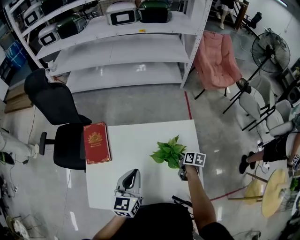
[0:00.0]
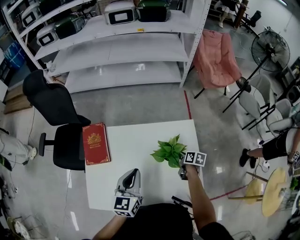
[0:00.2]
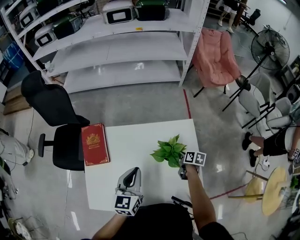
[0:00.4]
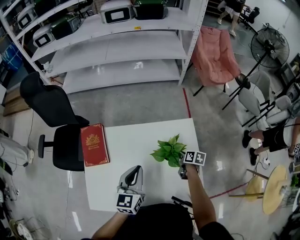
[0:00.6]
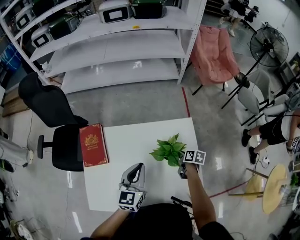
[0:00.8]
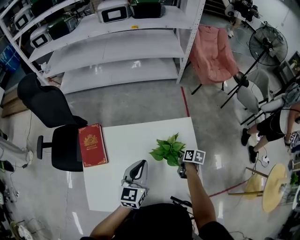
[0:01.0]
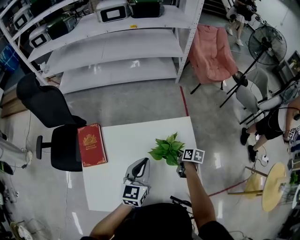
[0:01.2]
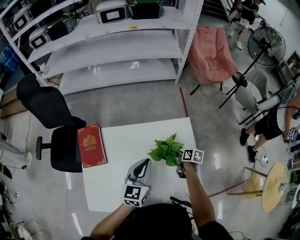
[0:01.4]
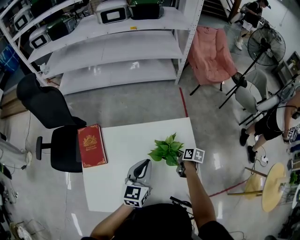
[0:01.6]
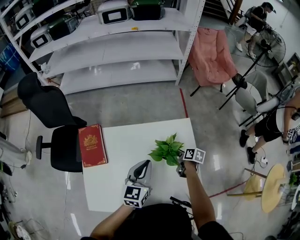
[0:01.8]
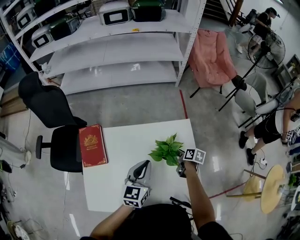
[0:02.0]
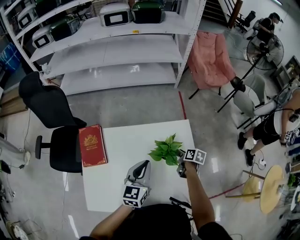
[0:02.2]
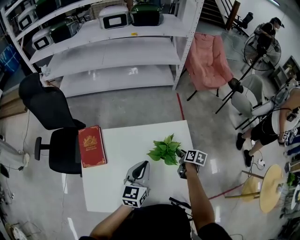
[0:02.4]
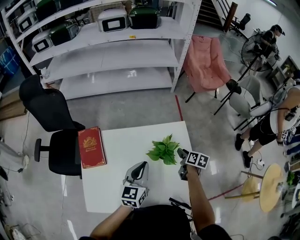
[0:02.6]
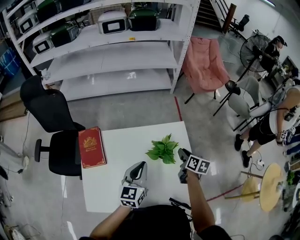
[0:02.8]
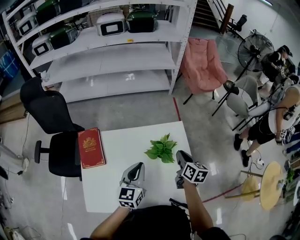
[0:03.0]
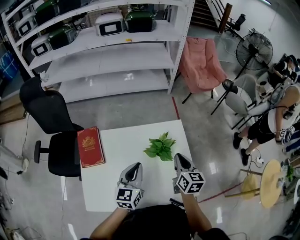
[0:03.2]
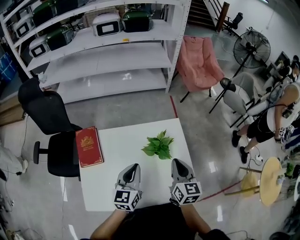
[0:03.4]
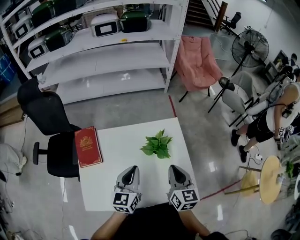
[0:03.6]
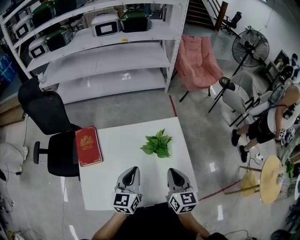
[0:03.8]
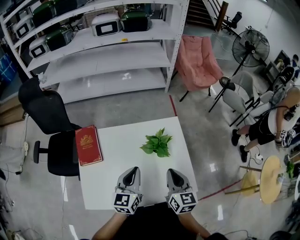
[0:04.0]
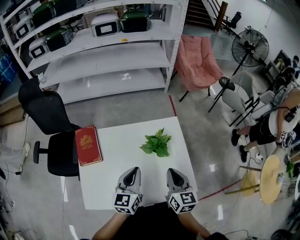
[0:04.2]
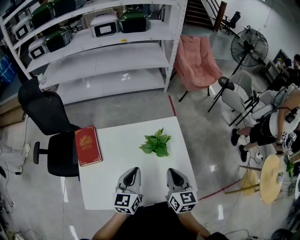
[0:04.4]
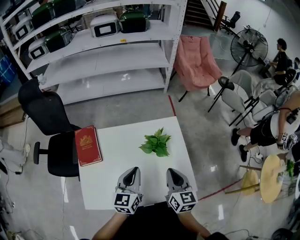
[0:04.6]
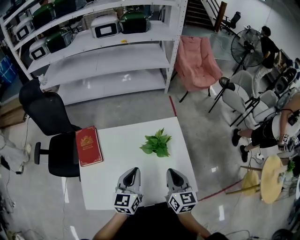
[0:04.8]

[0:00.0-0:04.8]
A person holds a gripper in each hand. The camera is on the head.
0:00.0 to 0:01.6: The left gripper travels to the right by approximately 10 cm.
0:01.6 to 0:03.2: The right gripper moves upward and backward, roughly 25 cm, and changes its angle by about 40 degrees. The left gripper is displaced backward by about 5 cm.
0:03.2 to 0:04.8: The right gripper moves backward, some 10 cm.

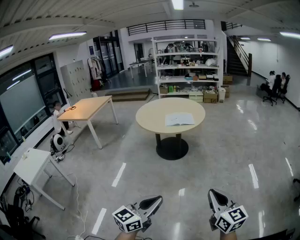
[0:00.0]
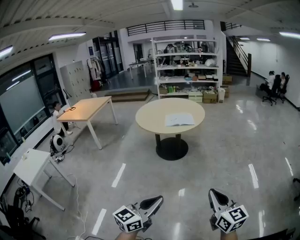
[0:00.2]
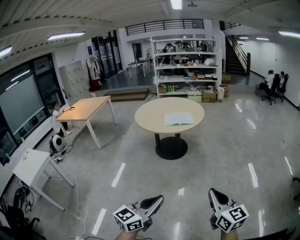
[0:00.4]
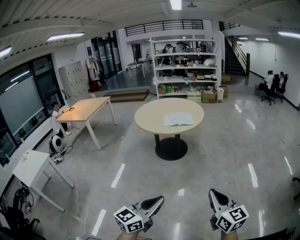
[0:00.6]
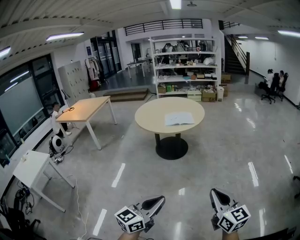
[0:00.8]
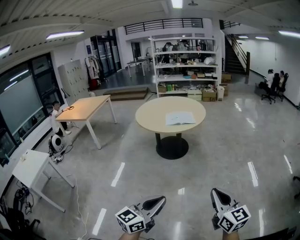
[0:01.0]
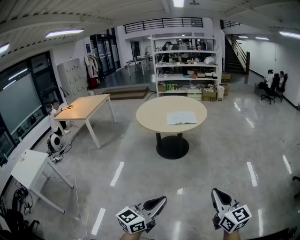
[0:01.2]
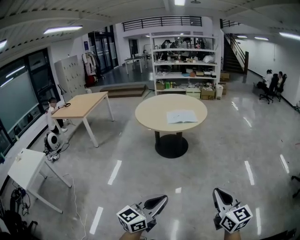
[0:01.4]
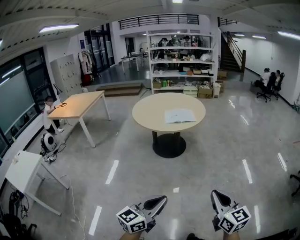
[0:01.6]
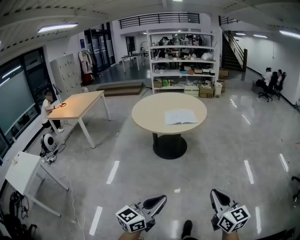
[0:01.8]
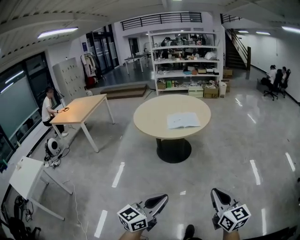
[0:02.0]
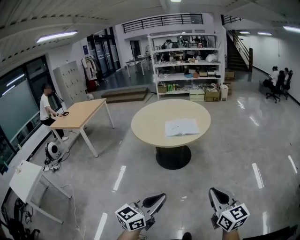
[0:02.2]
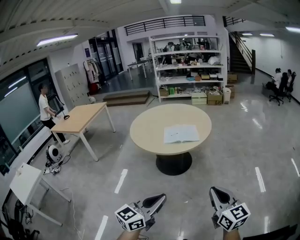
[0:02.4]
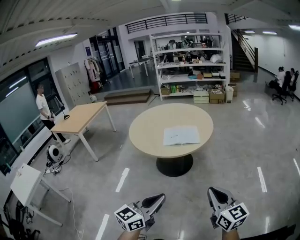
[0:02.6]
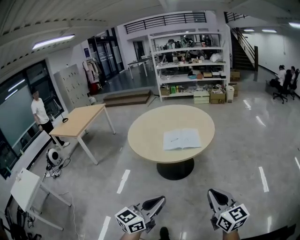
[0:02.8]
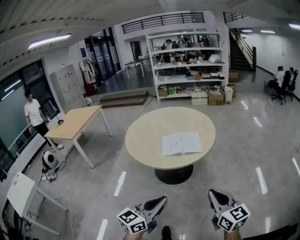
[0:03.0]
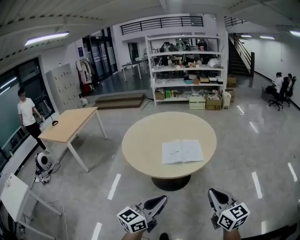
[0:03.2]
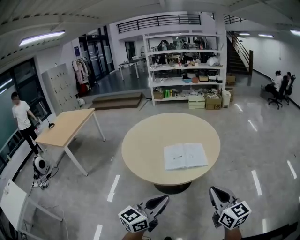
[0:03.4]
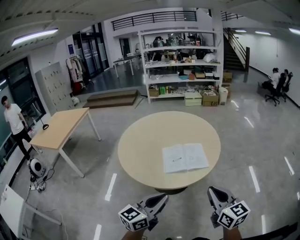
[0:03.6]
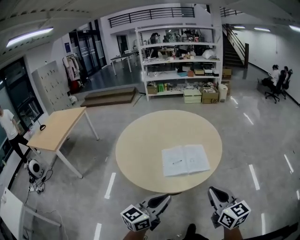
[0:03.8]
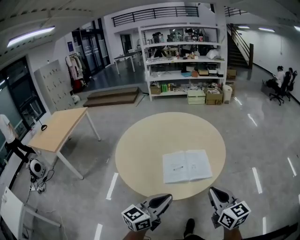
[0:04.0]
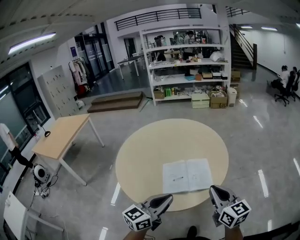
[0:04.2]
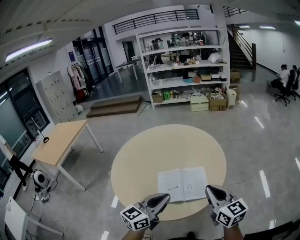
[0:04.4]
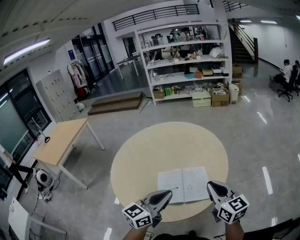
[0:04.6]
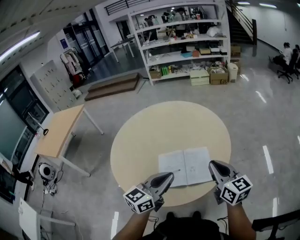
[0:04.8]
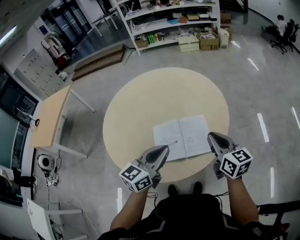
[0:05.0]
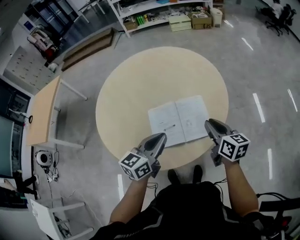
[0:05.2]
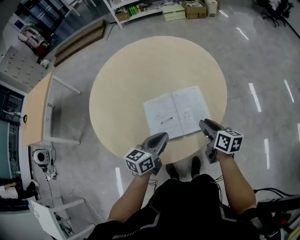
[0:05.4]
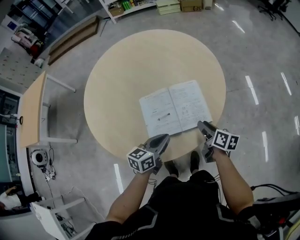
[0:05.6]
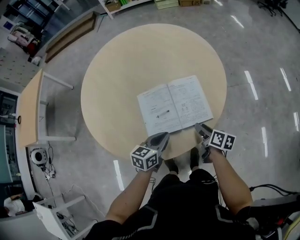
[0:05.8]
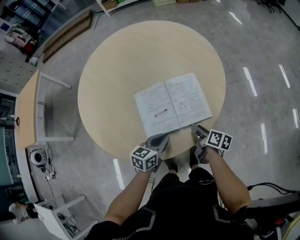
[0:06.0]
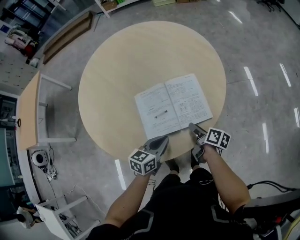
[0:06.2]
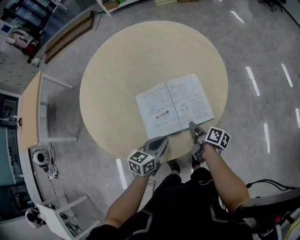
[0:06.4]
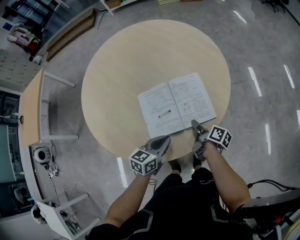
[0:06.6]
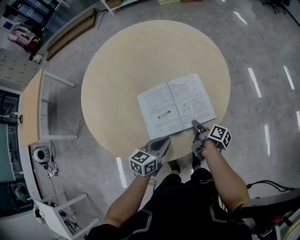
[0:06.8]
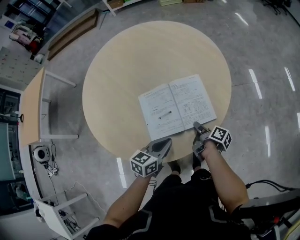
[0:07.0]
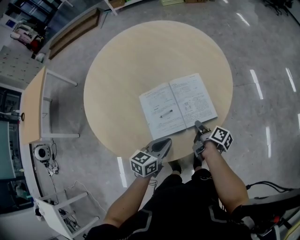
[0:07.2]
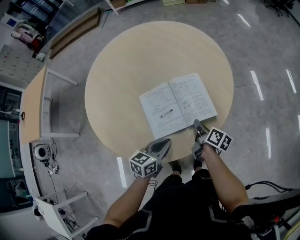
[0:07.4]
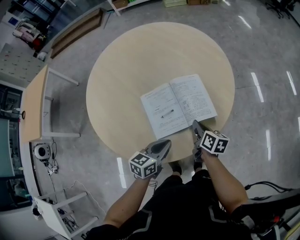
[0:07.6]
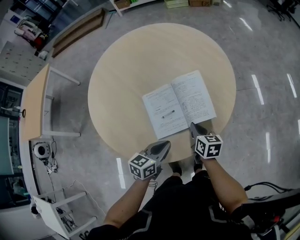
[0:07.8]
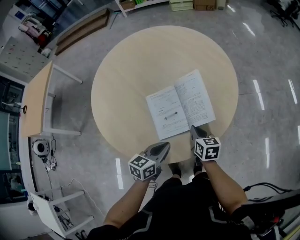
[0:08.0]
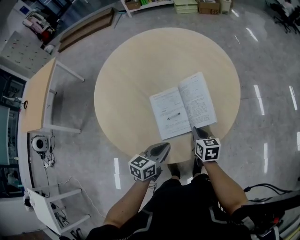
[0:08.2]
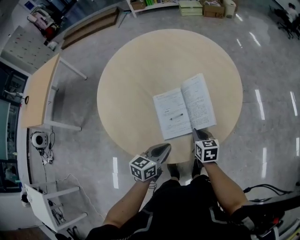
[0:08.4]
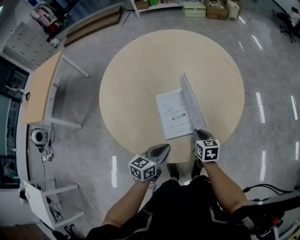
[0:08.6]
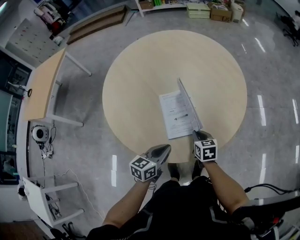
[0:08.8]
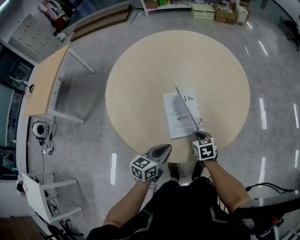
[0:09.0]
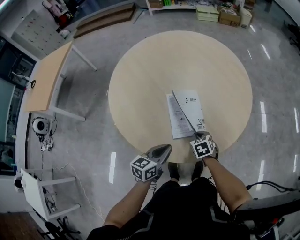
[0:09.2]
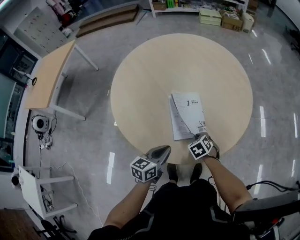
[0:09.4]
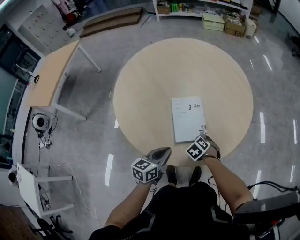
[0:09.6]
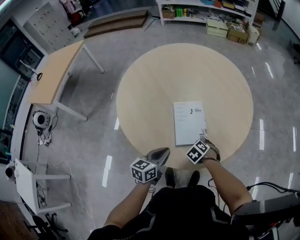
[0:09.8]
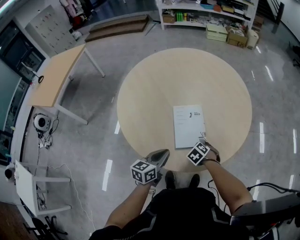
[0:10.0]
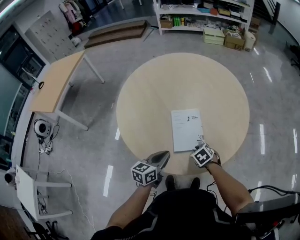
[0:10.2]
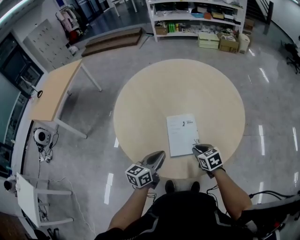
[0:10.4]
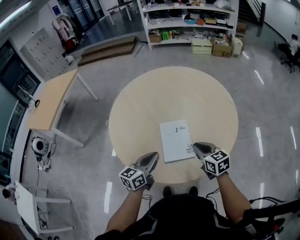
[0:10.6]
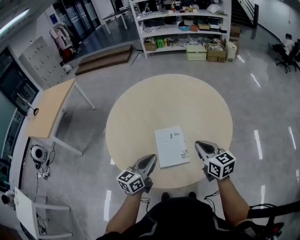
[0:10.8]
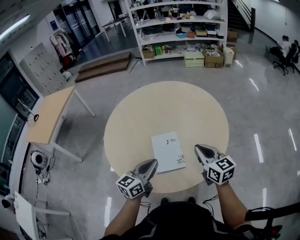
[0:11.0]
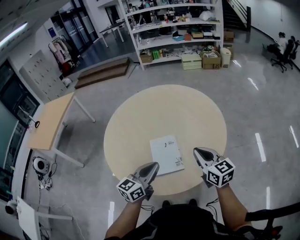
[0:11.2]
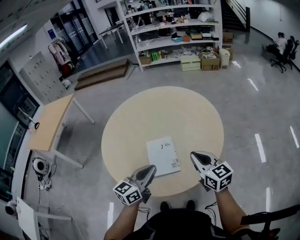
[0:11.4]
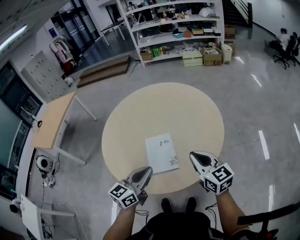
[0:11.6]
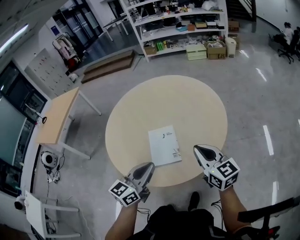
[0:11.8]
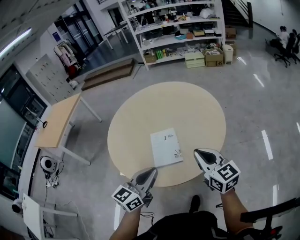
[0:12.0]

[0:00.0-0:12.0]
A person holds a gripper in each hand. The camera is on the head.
0:00.0 to 0:01.6: The left gripper moves to the left and forward, approximately 10 cm, while the right gripper is displaced to the left by roughly 10 cm.
0:01.6 to 0:03.0: The pair of grippers is taken forward, approximately 50 cm.
0:03.0 to 0:04.4: The pair of grippers is taken forward, about 50 cm.
0:04.4 to 0:06.0: Both grippers travel together downward, roughly 35 cm. The right gripper rotates around the line of its fingers by about 60 degrees, clockwise from behind, and opens up. The left gripper rotates about 30 degrees.
0:06.0 to 0:07.6: The right gripper moves approximately 5 cm, and closes.
0:07.6 to 0:09.0: The grippers both shift to the left by approximately 10 cm. The right gripper rolls counterclockwise, seen from behind, by some 40 degrees.
0:09.0 to 0:10.4: The left gripper changes place by roughly 10 cm. Meanwhile the right gripper shifts approximately 5 cm upward.
0:10.4 to 0:12.0: The left gripper goes roughly 20 cm upward, to the right and backward; the right gripper goes some 25 cm upward and to the right, and points its fingers approximately 40 degrees further upward.

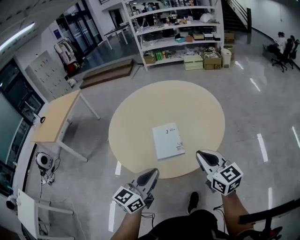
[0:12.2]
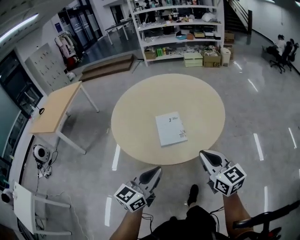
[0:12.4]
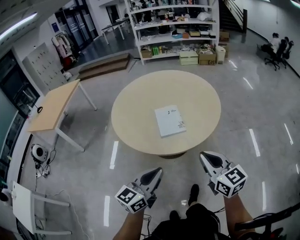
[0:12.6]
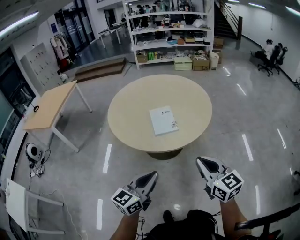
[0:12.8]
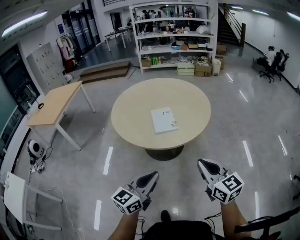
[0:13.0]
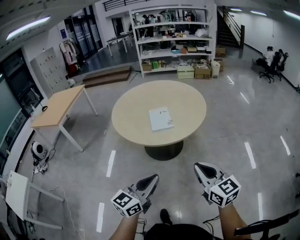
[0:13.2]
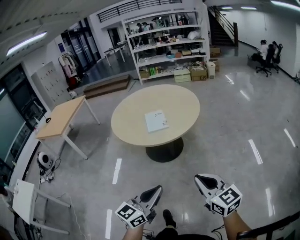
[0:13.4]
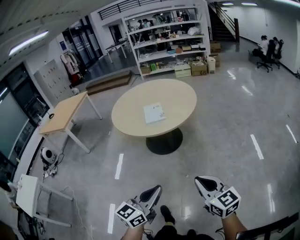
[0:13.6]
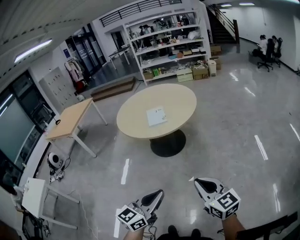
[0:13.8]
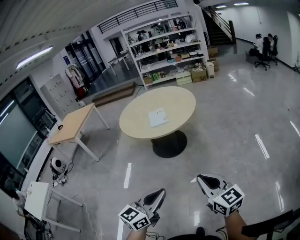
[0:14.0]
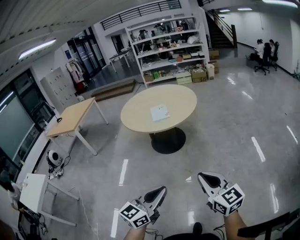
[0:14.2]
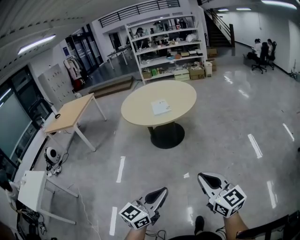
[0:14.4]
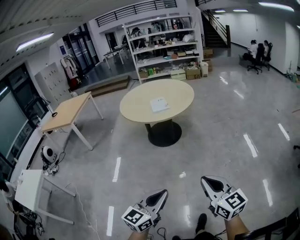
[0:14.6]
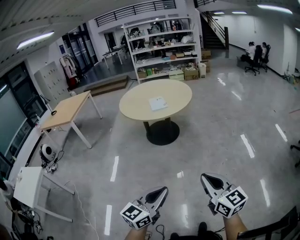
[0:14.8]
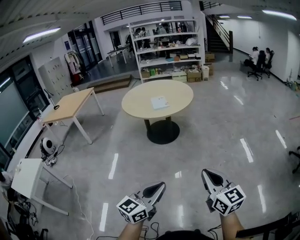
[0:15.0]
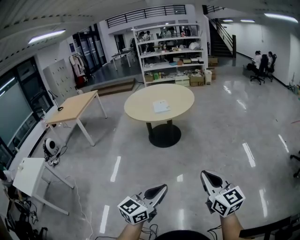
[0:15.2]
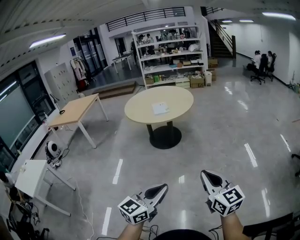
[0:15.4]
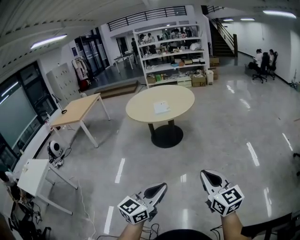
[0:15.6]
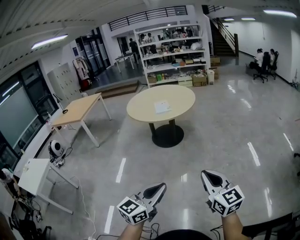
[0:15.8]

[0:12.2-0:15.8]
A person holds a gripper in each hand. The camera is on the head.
0:12.2 to 0:14.0: The two grippers travel together, backward, roughly 70 cm.
0:14.0 to 0:15.8: The grippers both shift backward by some 30 cm.

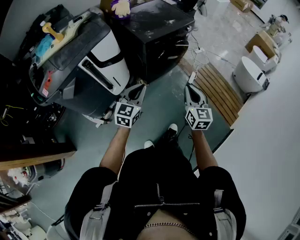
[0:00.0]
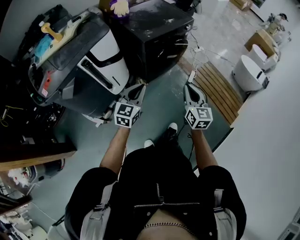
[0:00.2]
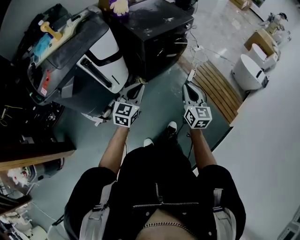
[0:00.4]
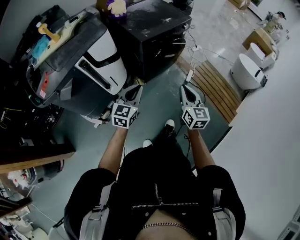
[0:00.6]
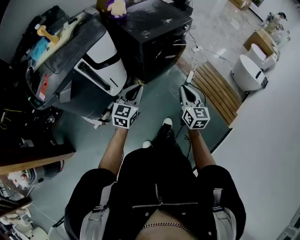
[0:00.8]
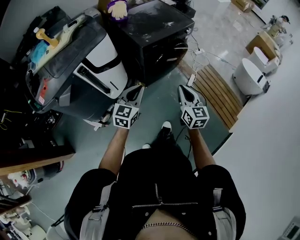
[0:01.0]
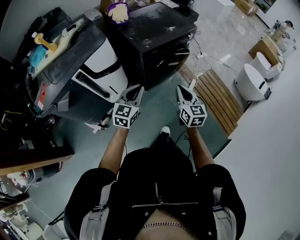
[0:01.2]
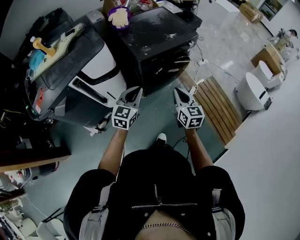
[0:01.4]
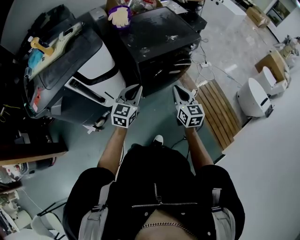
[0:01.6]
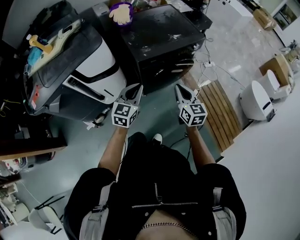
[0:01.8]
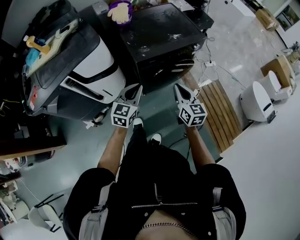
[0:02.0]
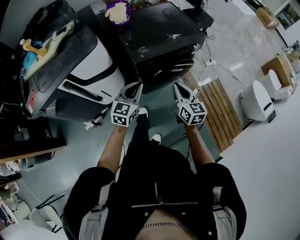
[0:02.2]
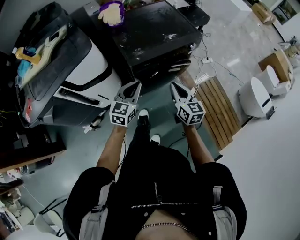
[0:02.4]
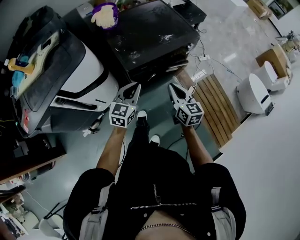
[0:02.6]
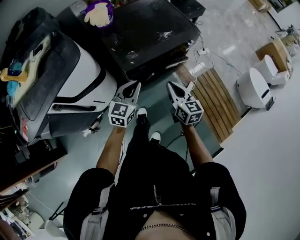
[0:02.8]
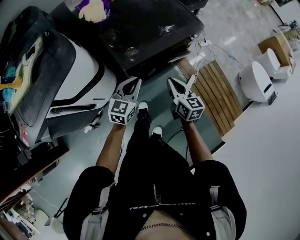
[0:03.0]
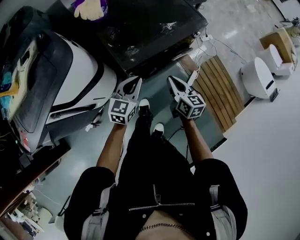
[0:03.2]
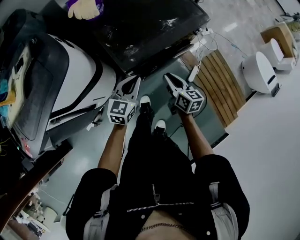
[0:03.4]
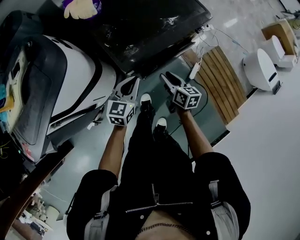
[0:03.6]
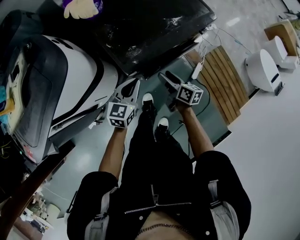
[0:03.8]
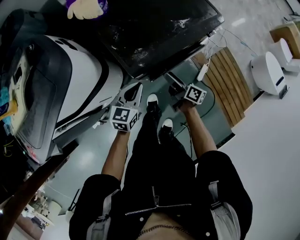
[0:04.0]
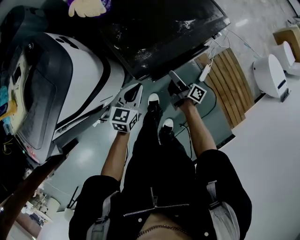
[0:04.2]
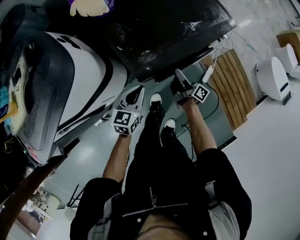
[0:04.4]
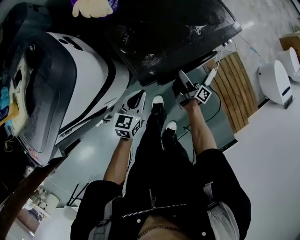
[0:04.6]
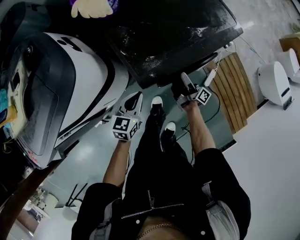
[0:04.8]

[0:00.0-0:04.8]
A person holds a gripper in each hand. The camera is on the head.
0:00.0 to 0:01.6: The grippers both shift forward by roughly 20 cm.
0:01.6 to 0:03.2: The two grippers go some 20 cm forward and downward. The right gripper rotates some 20 degrees.
0:03.2 to 0:04.8: The right gripper is displaced downward and forward by some 20 cm, rolls clockwise, seen from behind, by some 60 degrees, and opens. The left gripper heads downward and to the left, covering about 15 cm.
